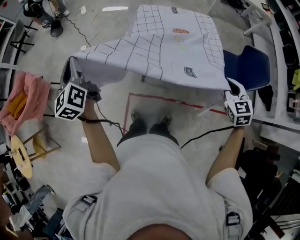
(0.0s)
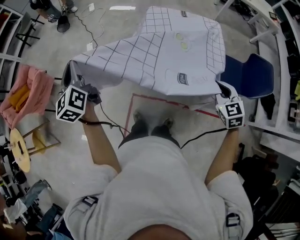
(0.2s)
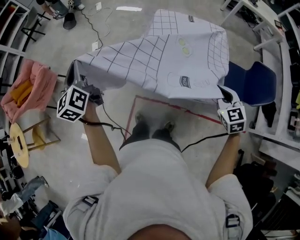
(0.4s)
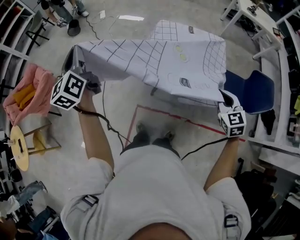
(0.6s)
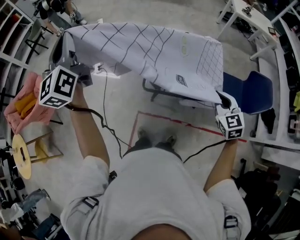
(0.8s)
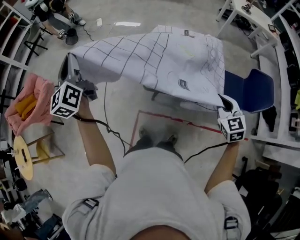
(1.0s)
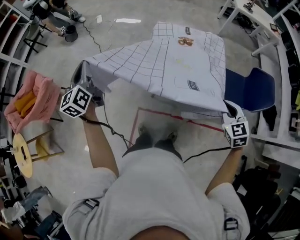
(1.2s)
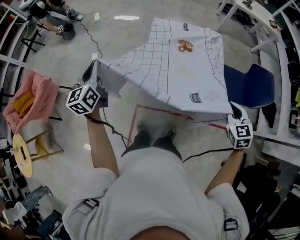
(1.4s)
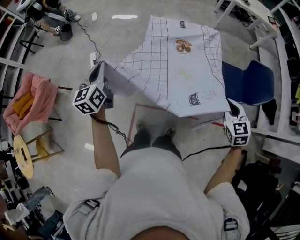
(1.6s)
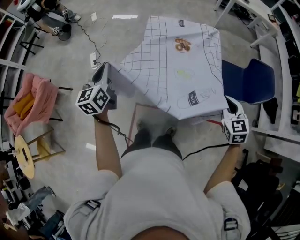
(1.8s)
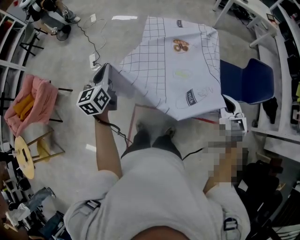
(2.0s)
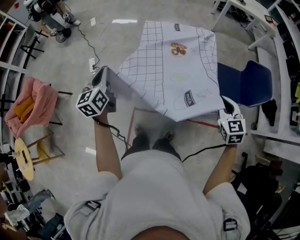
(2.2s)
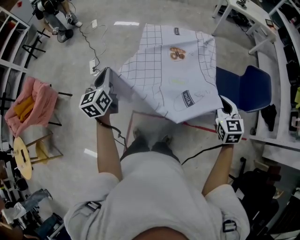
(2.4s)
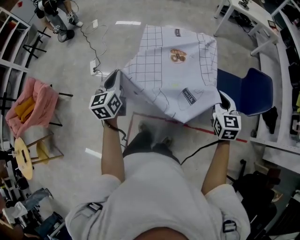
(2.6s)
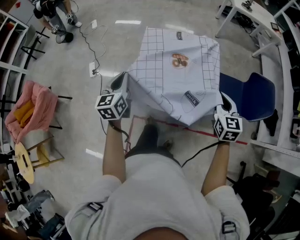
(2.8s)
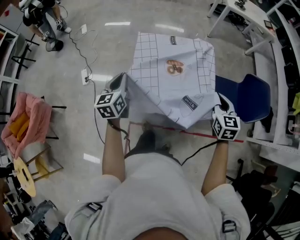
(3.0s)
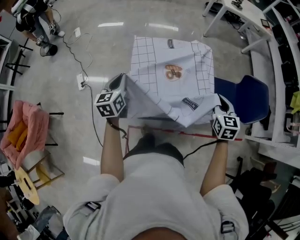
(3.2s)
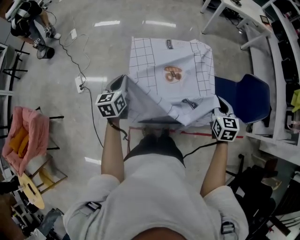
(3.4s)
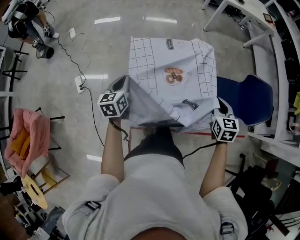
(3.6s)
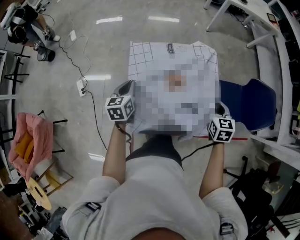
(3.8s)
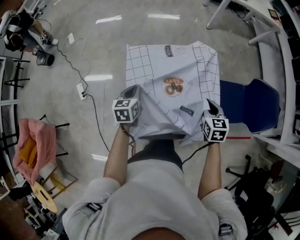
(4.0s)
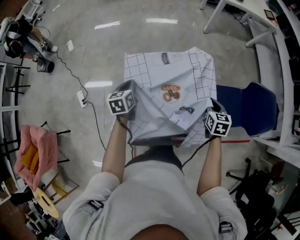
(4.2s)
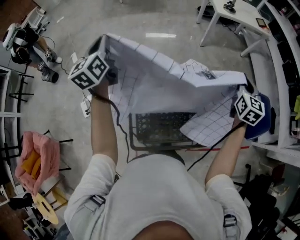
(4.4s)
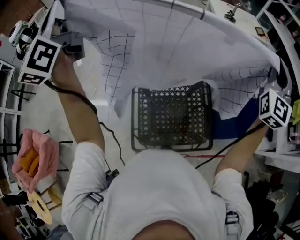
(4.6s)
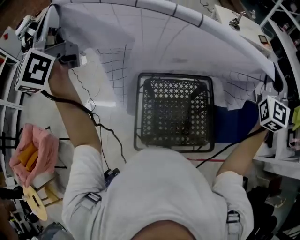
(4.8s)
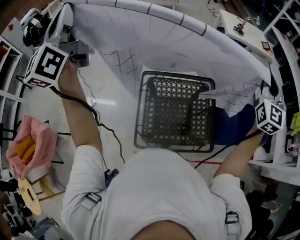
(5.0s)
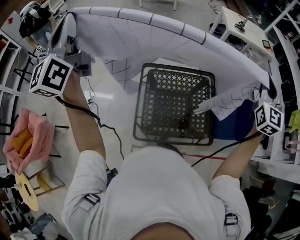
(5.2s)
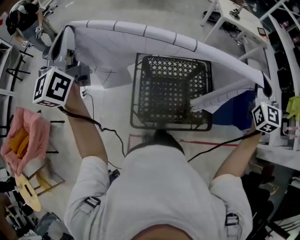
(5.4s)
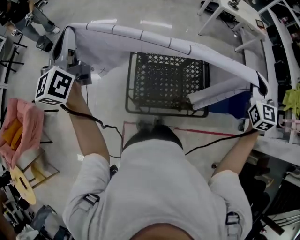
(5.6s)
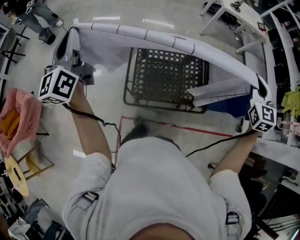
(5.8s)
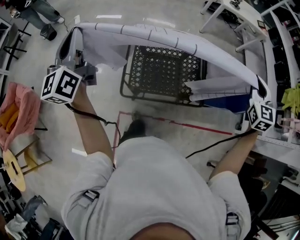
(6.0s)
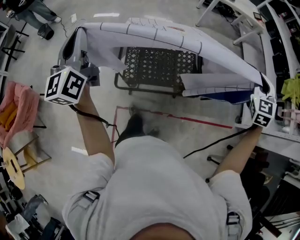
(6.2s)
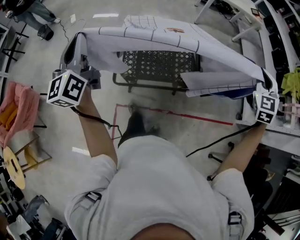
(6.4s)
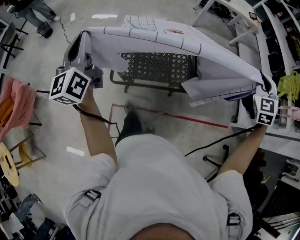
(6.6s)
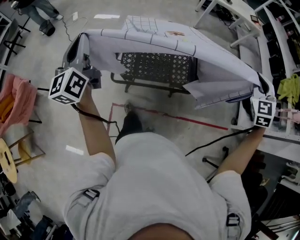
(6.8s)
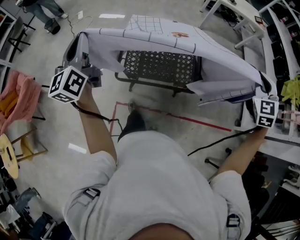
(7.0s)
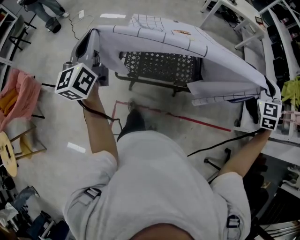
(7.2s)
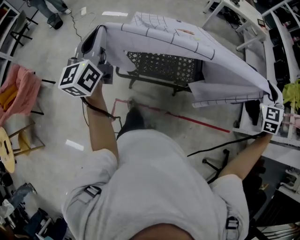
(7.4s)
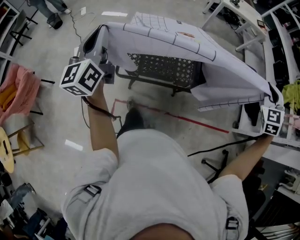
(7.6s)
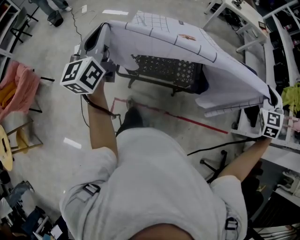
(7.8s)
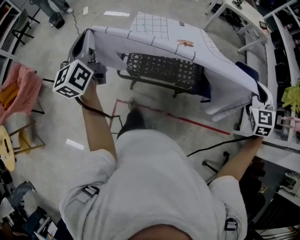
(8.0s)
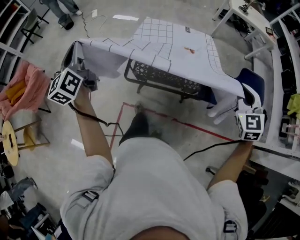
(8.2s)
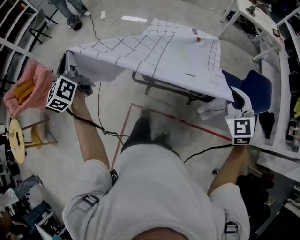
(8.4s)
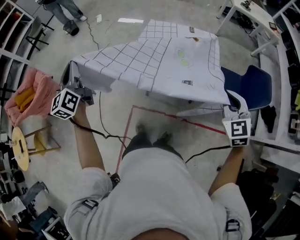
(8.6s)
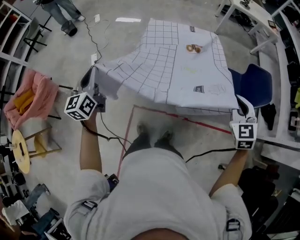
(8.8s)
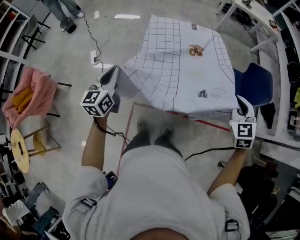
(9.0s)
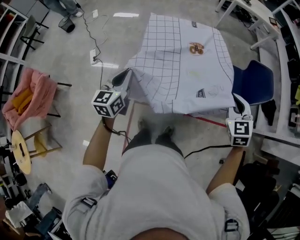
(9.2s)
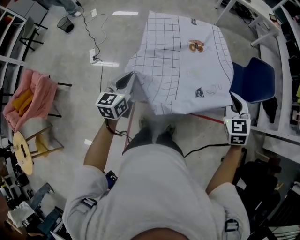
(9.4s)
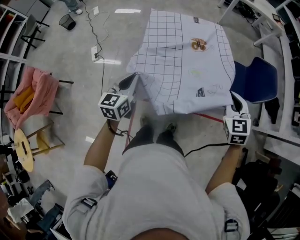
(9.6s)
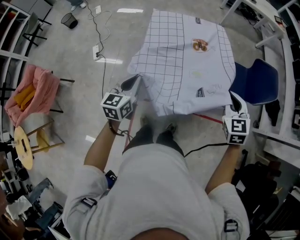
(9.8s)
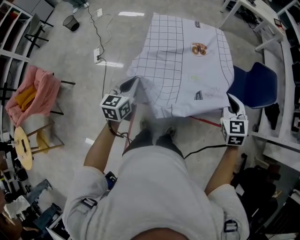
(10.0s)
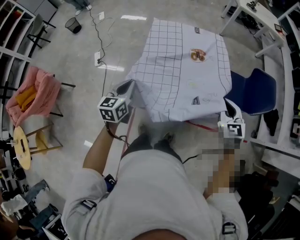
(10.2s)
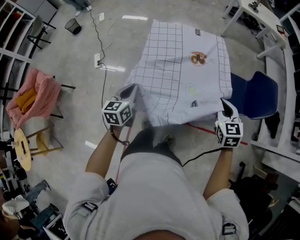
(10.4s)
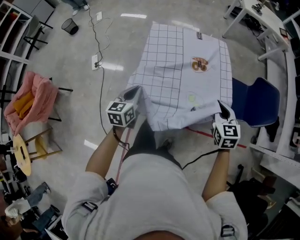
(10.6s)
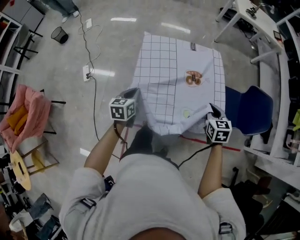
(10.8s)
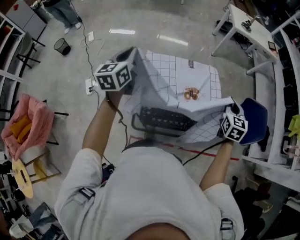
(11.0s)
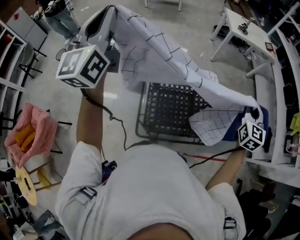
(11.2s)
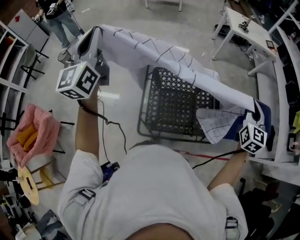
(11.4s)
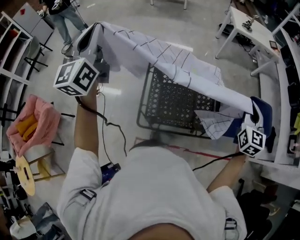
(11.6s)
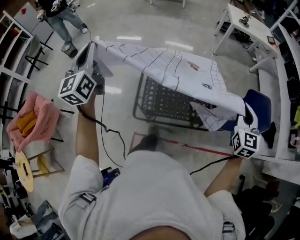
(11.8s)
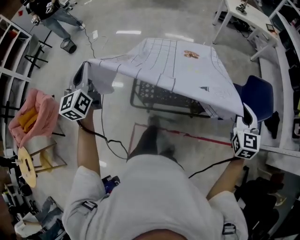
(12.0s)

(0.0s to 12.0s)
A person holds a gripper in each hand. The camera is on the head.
0.0s - 1.6s: The right gripper reaches some 10 cm to the left, then returns, while the left gripper goes approximately 5 cm to the right, and travels upward and back again, approximately 20 cm each way.
1.6s - 3.0s: The right gripper moves forward, about 20 cm. The left gripper moves forward, to the right and downward, approximately 20 cm.
3.0s - 4.4s: The grippers both shift forward and upward by some 35 cm. The right gripper turns by approximately 20 degrees.
4.4s - 6.0s: The left gripper moves backward, approximately 40 cm, while the right gripper goes about 25 cm backward, moves about 25 cm upward and comes back, and turns by some 30 degrees.
6.0s - 7.6s: Both grippers move to the right and backward, some 15 cm. The right gripper rotates about 30 degrees.
7.6s - 9.0s: The right gripper shifts by approximately 25 cm, and swivels some 20 degrees. Meanwhile the left gripper heads downward, covering roughly 15 cm, and swivels roughly 20 degrees.
9.0s - 10.4s: The left gripper shifts about 10 cm downward and to the right. The right gripper is displaced downward and forward by roughly 10 cm.
10.4s - 12.0s: The right gripper goes up and down, approximately 25 cm each way, reversing 2 times. The left gripper swings up and down, some 50 cm each way, with 2 reversals, and swivels approximately 30 degrees.

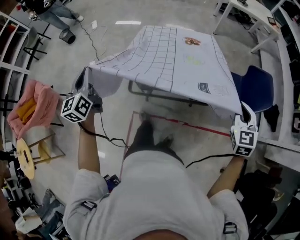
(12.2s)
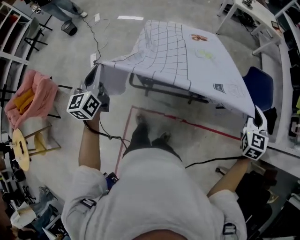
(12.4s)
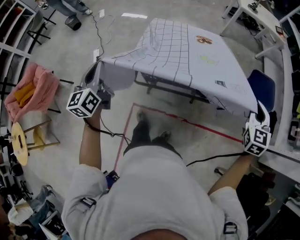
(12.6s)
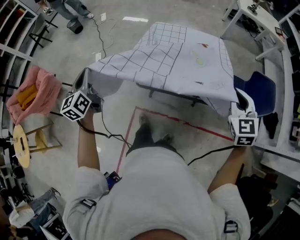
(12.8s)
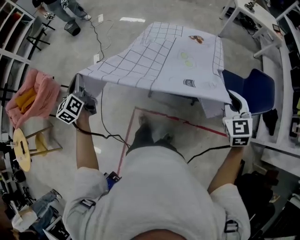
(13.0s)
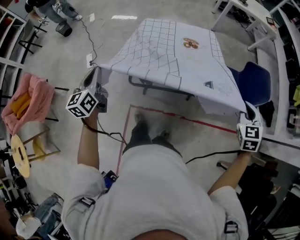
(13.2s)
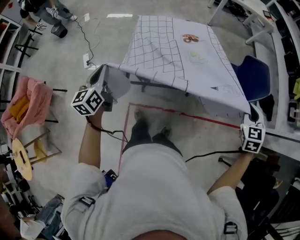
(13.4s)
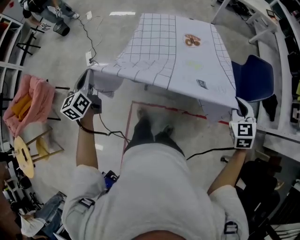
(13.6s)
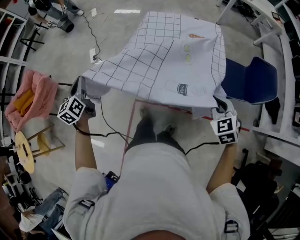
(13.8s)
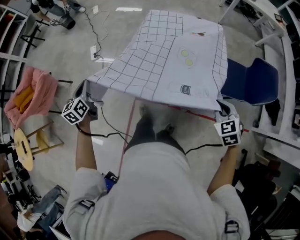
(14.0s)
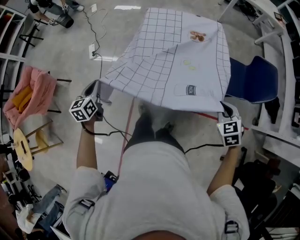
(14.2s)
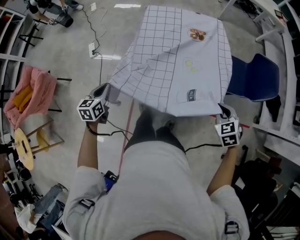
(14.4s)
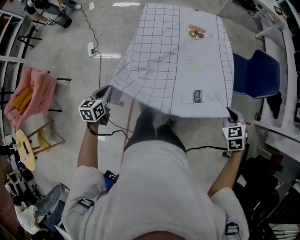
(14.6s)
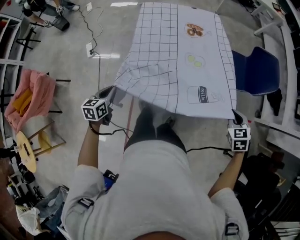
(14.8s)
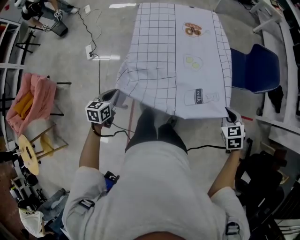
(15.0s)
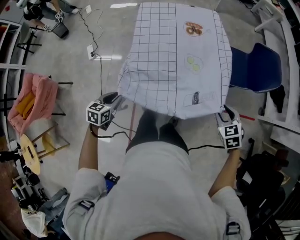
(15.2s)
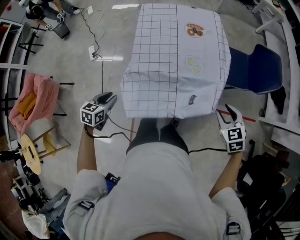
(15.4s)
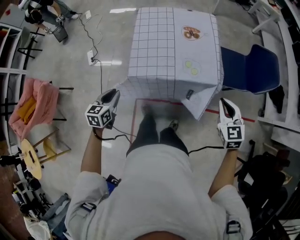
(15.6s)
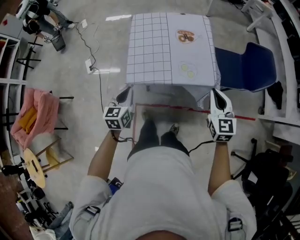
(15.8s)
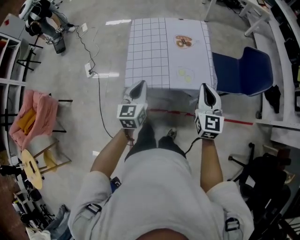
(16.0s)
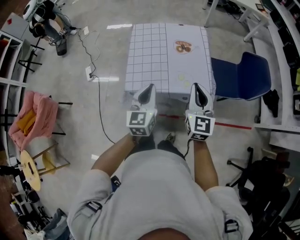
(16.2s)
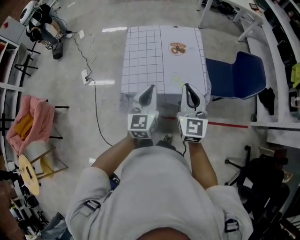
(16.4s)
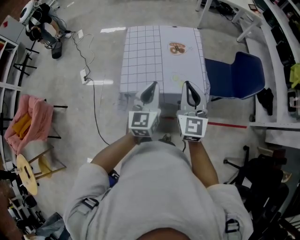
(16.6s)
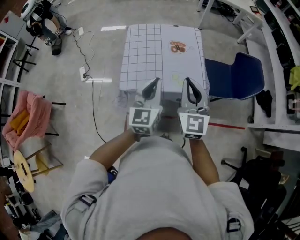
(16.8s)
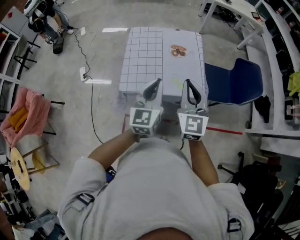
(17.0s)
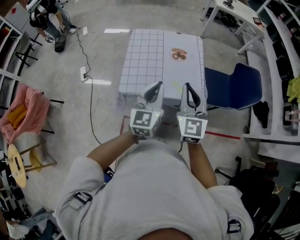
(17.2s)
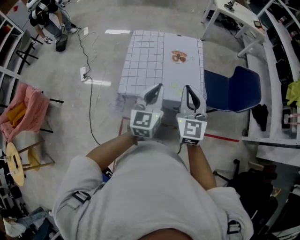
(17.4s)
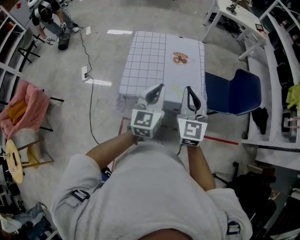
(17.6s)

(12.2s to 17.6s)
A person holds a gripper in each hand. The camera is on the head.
12.2s - 13.6s: The right gripper goes left and right, some 20 cm each way, reversing 3 times; the left gripper moves left and right over approximately 15 cm, changing direction 3 times.
13.6s - 15.0s: The right gripper heads downward and backward, covering roughly 15 cm; the left gripper travels downward, backward and to the right by some 20 cm, and rotates about 40 degrees.
15.0s - 16.2s: The right gripper moves to the left, upward and forward, about 20 cm, points its fingers roughly 50 degrees further upward, and opens, then closes once more. Meanwhile the left gripper goes roughly 25 cm to the right, upward and forward, turns by roughly 30 degrees, and opens, then closes once more.
16.2s - 17.6s: The left gripper goes about 5 cm to the right; the right gripper ends up approximately 5 cm from where it was.

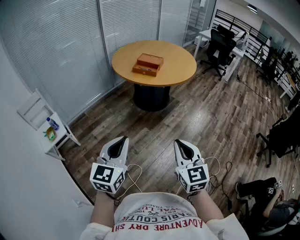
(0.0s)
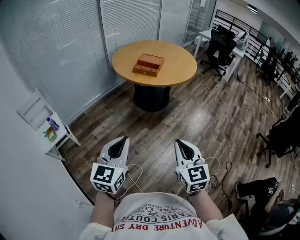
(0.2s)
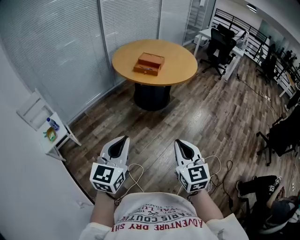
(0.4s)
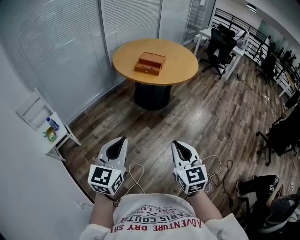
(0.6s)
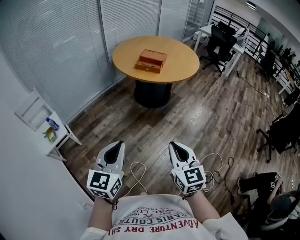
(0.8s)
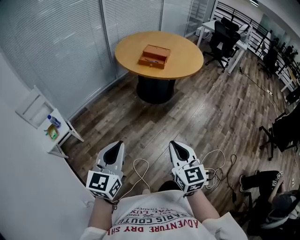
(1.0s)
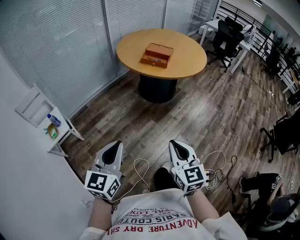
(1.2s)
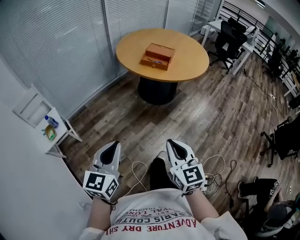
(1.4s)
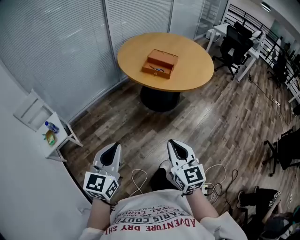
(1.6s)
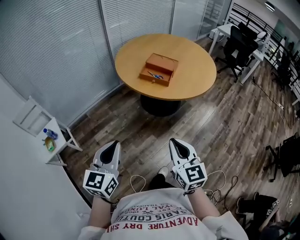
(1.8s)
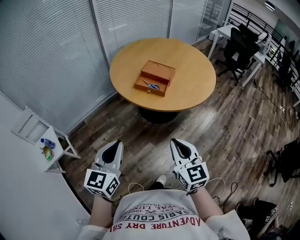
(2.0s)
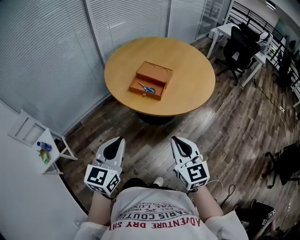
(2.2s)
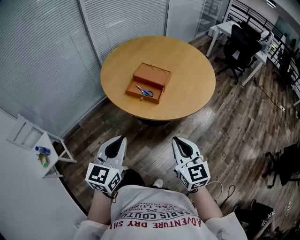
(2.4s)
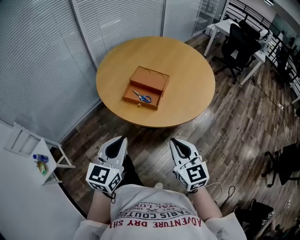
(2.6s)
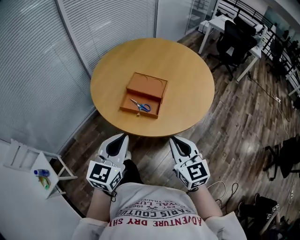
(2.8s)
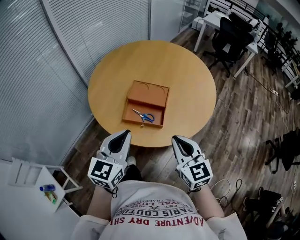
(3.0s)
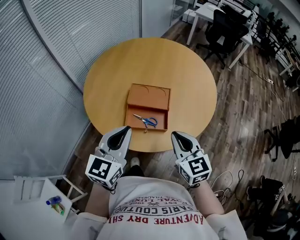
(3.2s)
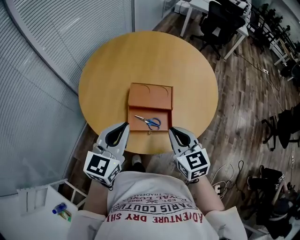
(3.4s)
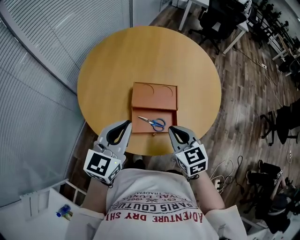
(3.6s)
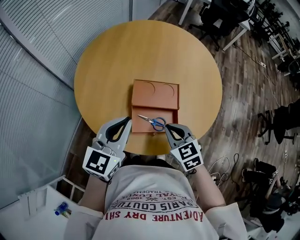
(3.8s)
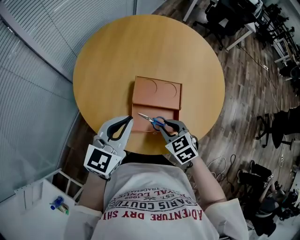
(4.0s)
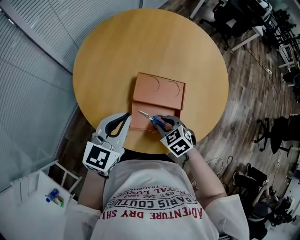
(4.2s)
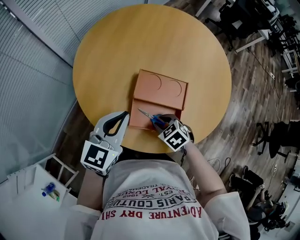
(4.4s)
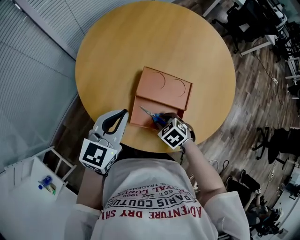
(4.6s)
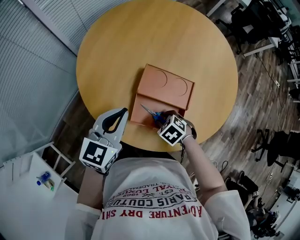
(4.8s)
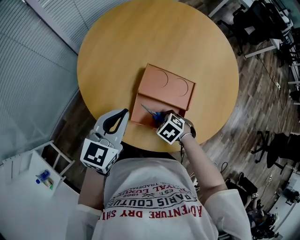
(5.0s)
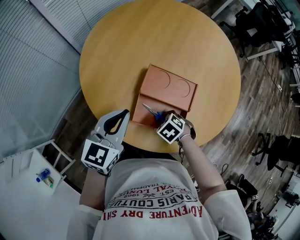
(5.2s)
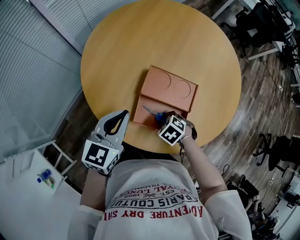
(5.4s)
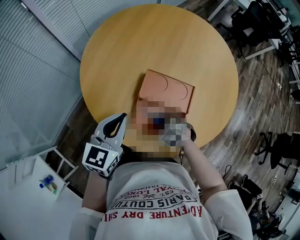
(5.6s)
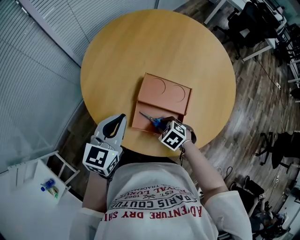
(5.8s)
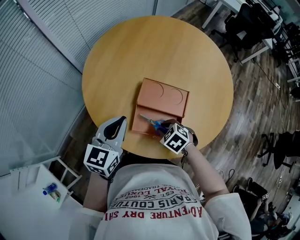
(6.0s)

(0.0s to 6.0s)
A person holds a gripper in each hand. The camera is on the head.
0.0s - 1.6s: The grippers both shift forward and to the left by approximately 20 cm.
1.6s - 3.0s: The pair of grippers is taken forward, approximately 50 cm.
3.0s - 4.4s: The left gripper goes some 25 cm forward, to the left and downward, while the right gripper shifts about 30 cm downward, forward and to the left, angles its fingers downward, by about 50 degrees, and opens.
4.4s - 6.0s: There are only small adjustments of the grippers.
